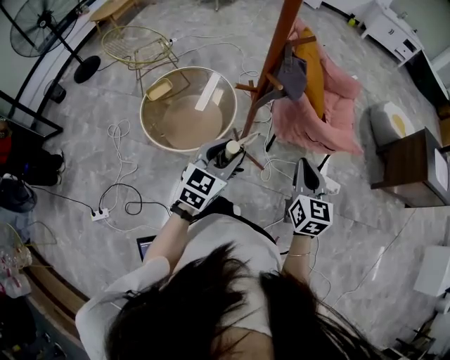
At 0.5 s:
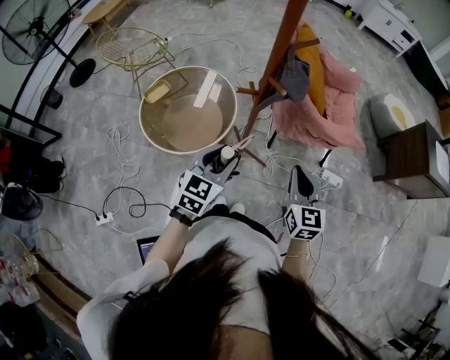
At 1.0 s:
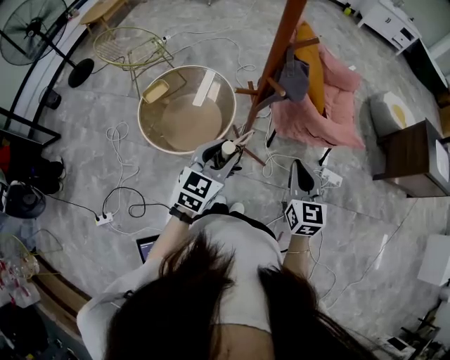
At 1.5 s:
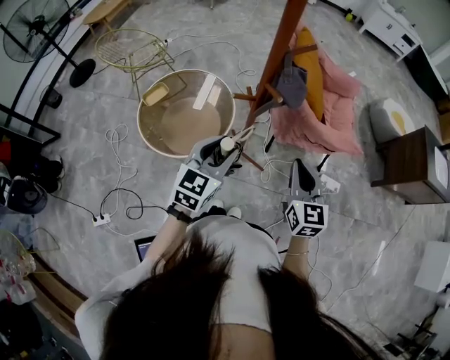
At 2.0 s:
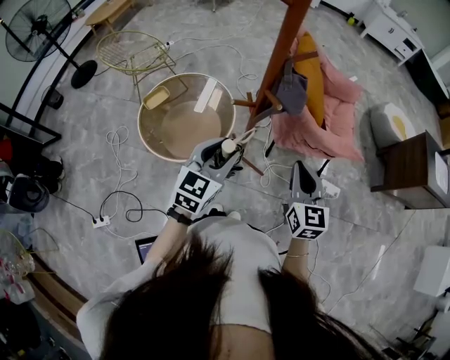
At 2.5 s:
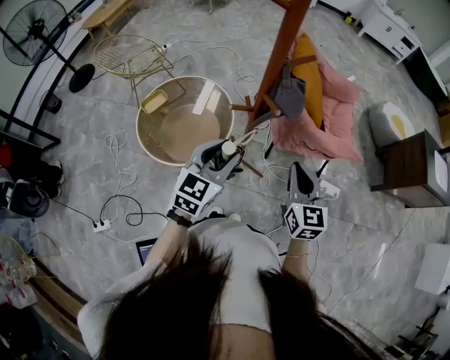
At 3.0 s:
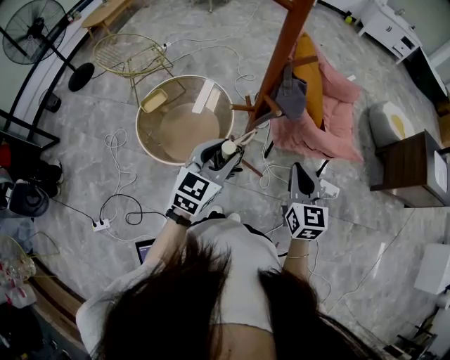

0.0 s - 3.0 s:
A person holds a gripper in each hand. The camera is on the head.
0.0 s - 1.5 s: The left gripper ends up approximately 5 cm from where it was.
1.5 s - 3.0 s: The grippers make only small movements.

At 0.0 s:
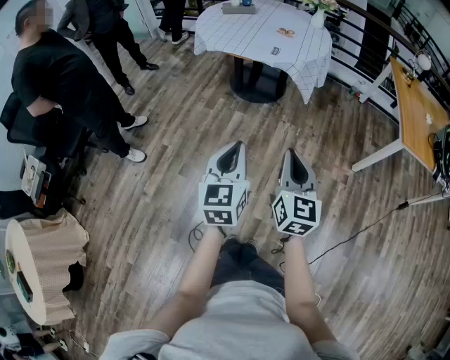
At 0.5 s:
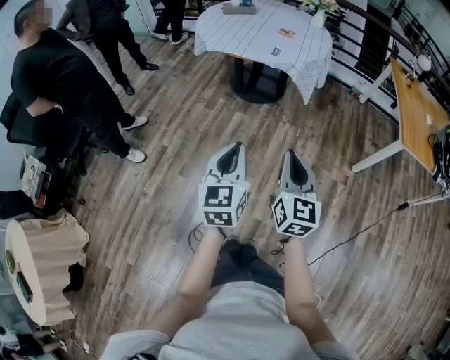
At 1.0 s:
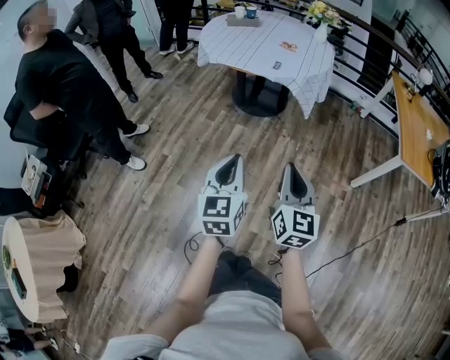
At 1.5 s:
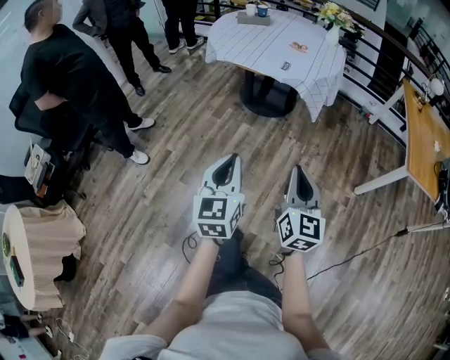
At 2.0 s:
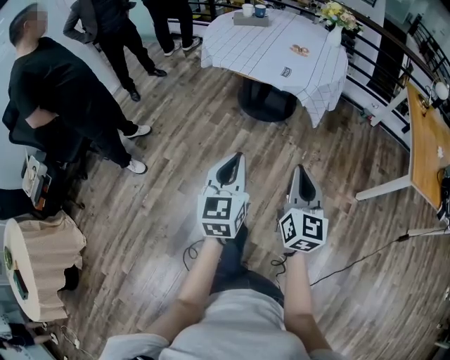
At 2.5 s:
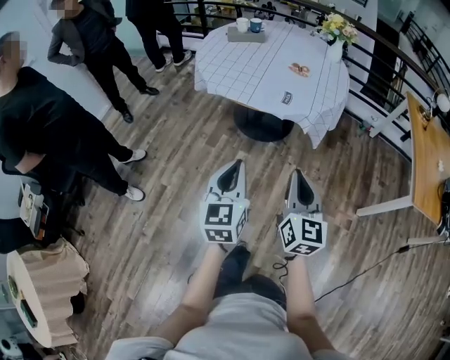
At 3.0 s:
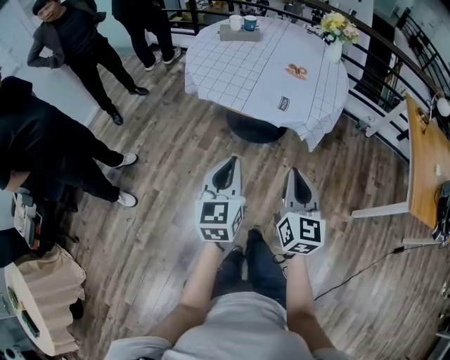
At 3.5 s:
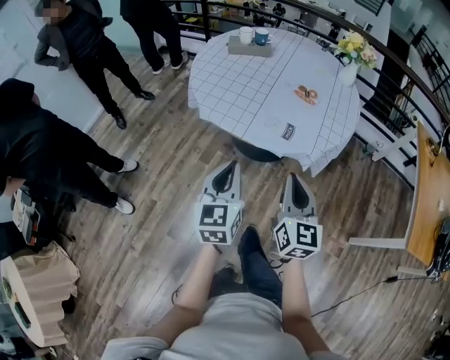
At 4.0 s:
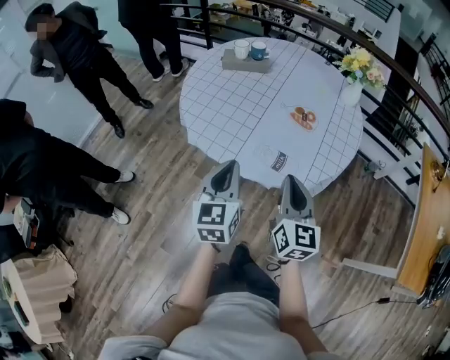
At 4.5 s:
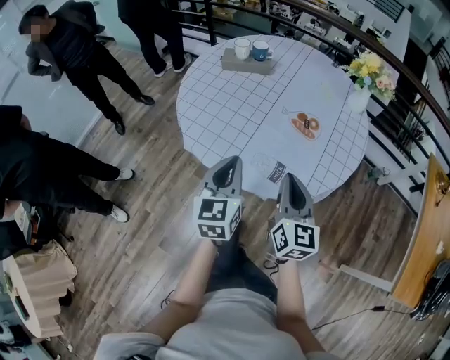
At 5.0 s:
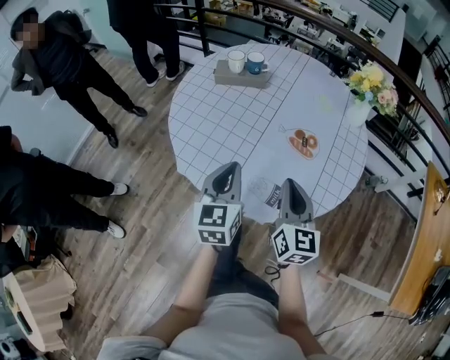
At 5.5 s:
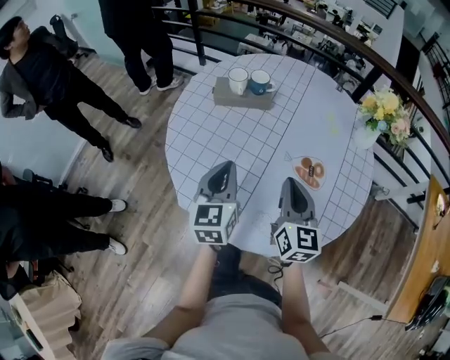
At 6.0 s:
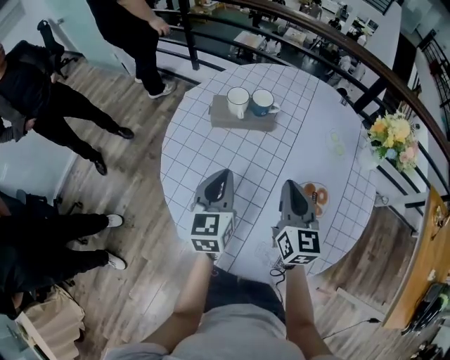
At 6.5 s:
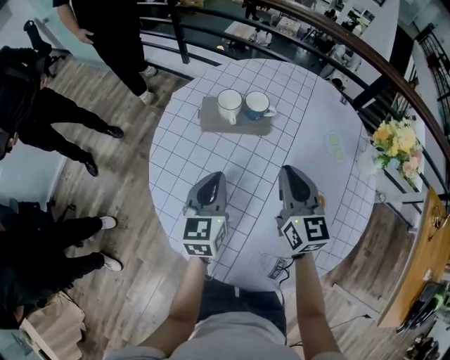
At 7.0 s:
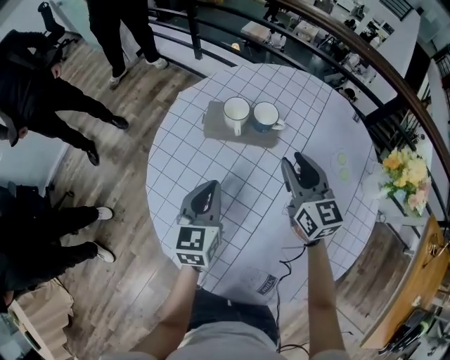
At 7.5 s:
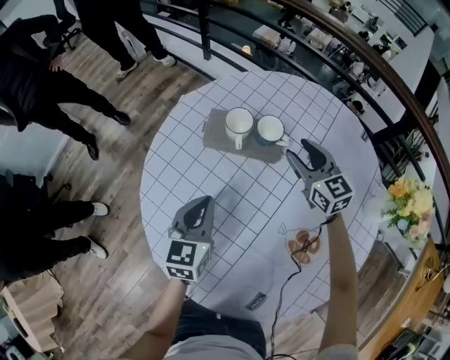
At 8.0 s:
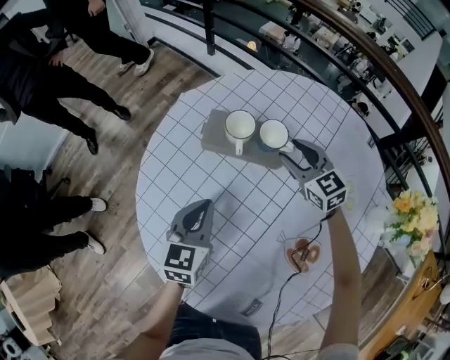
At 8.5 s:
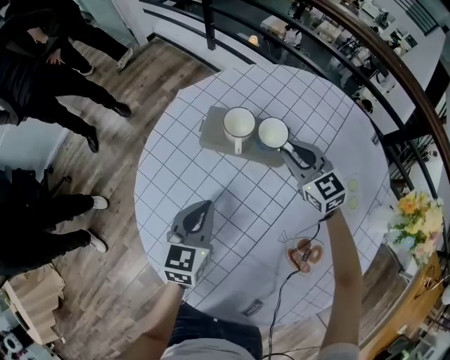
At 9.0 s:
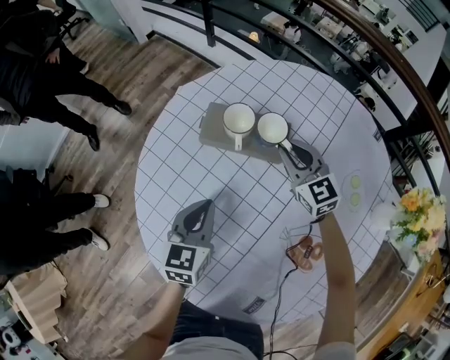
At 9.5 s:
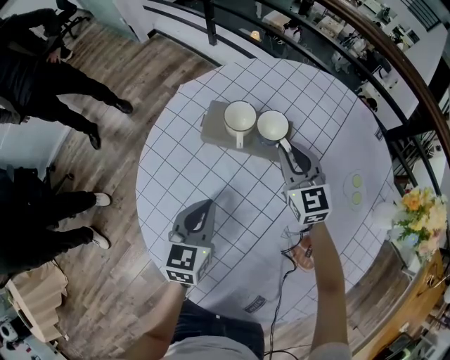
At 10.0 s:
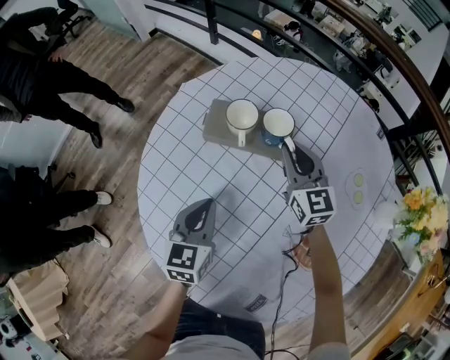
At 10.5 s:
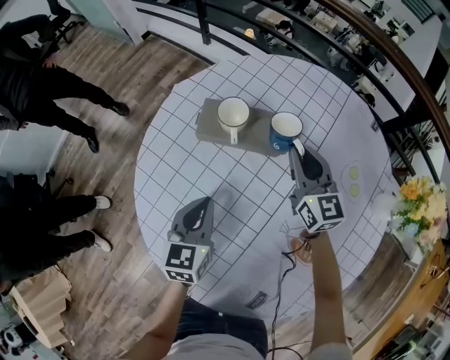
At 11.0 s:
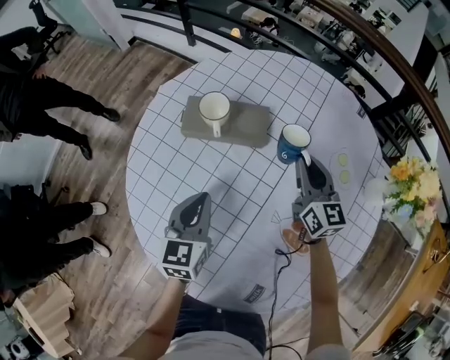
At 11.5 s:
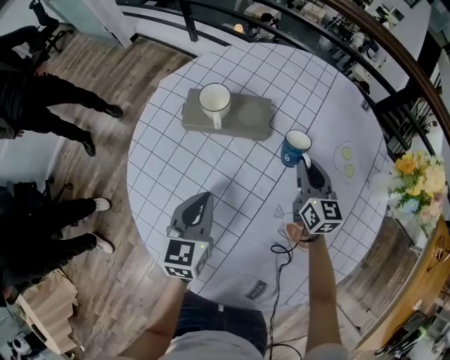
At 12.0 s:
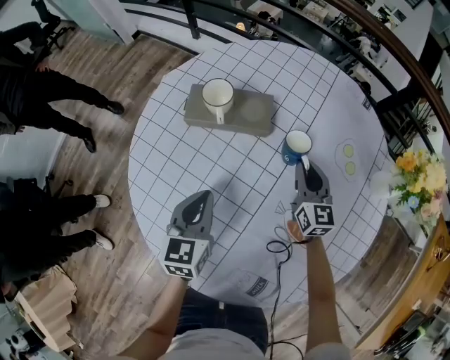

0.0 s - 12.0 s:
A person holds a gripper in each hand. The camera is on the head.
0.0 s - 2.0 s: The two grippers go approximately 15 cm forward.
2.0 s - 4.0 s: Both grippers are carried forward, about 50 cm.
4.0 s - 6.0 s: Both grippers are carried forward, some 40 cm.
6.0 s - 8.0 s: The right gripper heads forward and downward, covering about 30 cm, rotates approximately 50 degrees, and opens its fingers. Meanwhile the left gripper moves downward and forward, roughly 15 cm.
8.0 s - 10.0 s: The right gripper turns by approximately 20 degrees, and closes its fingers.
10.0 s - 12.0 s: The right gripper travels to the right, backward and downward by approximately 15 cm.

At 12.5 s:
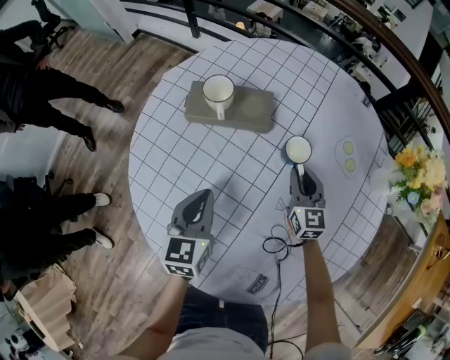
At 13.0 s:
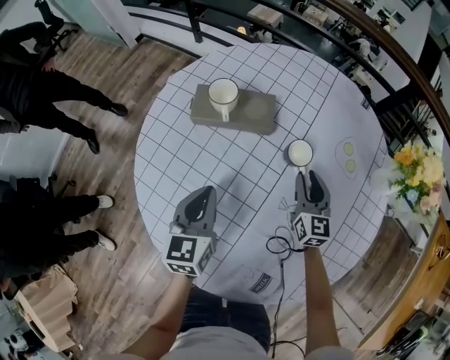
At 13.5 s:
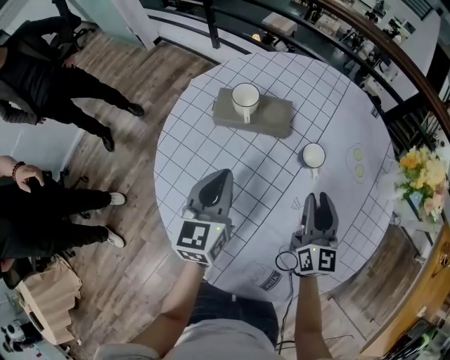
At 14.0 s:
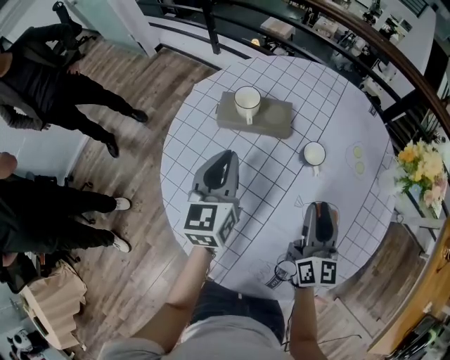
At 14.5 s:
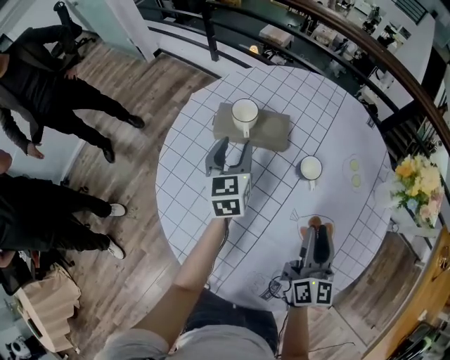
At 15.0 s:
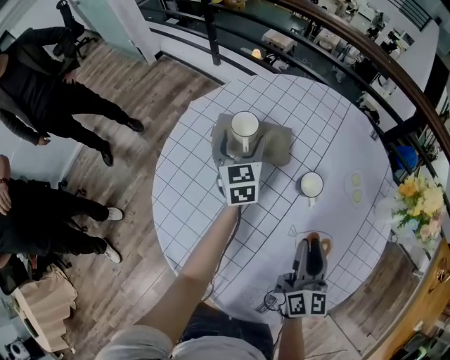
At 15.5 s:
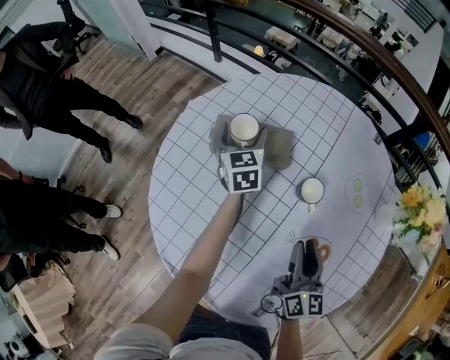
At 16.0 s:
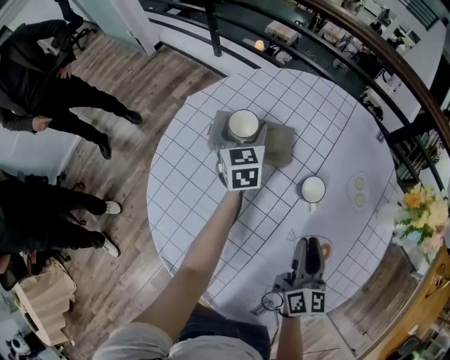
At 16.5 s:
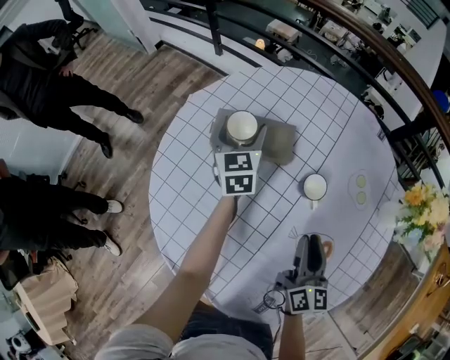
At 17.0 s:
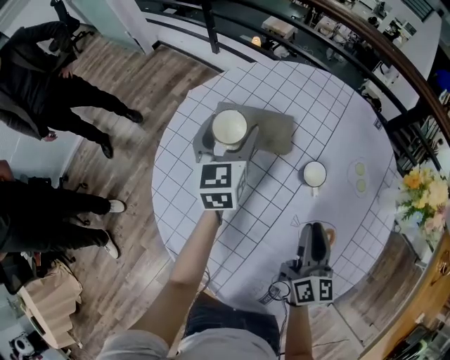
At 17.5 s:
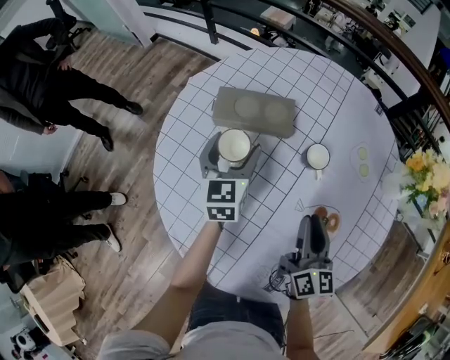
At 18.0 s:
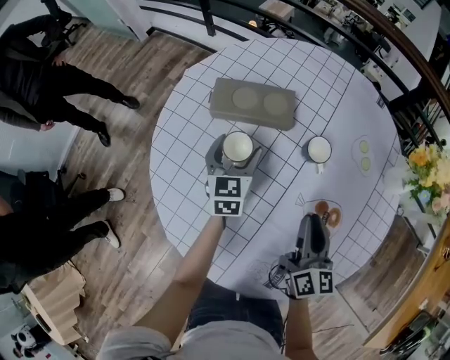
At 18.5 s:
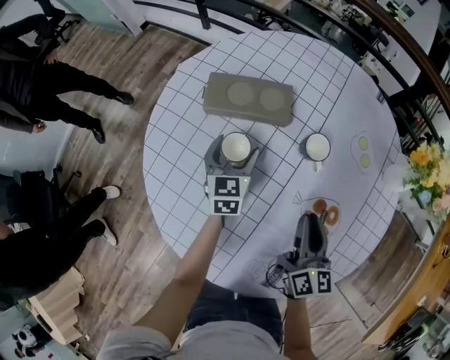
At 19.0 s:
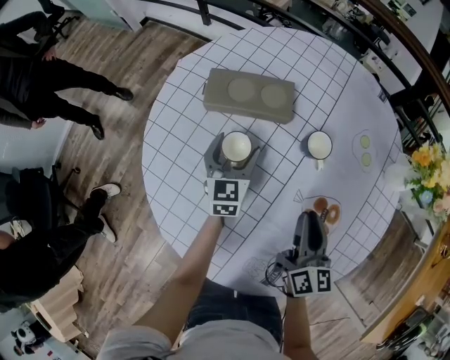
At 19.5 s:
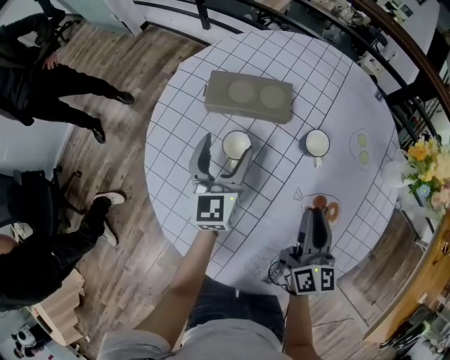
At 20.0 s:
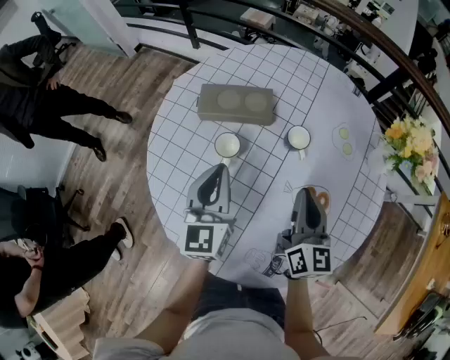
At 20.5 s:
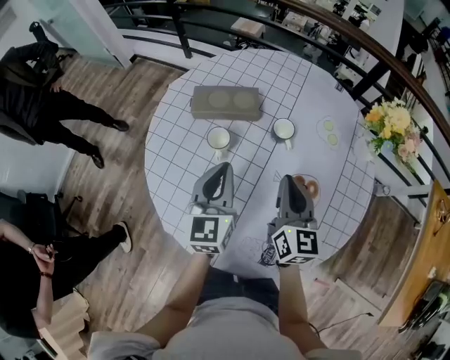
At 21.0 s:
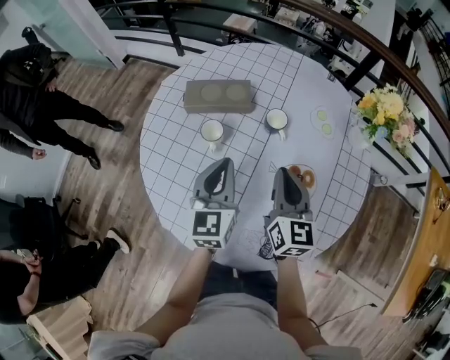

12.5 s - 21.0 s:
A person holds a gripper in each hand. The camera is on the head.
12.5 s - 14.5 s: The left gripper shifts about 15 cm forward, and opens, while the right gripper shifts roughly 20 cm upward and backward, and turns by some 30 degrees.
14.5 s - 16.5 s: The left gripper heads forward, covering roughly 10 cm, and opens up, while the right gripper moves roughly 5 cm.
16.5 s - 19.0 s: The left gripper goes roughly 15 cm backward and downward.
19.0 s - 21.0 s: The left gripper goes about 25 cm upward and backward, and closes. The right gripper goes approximately 10 cm upward.

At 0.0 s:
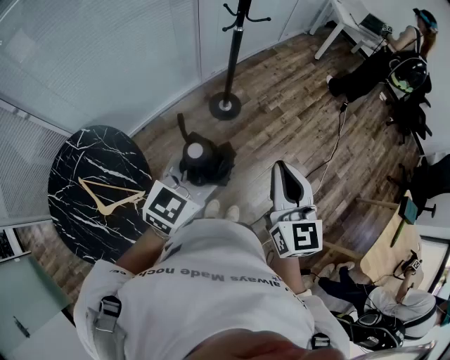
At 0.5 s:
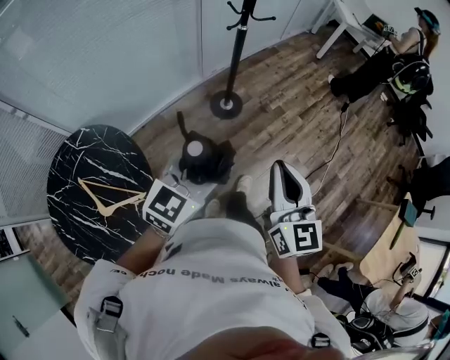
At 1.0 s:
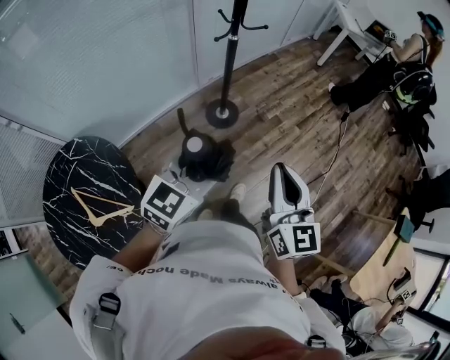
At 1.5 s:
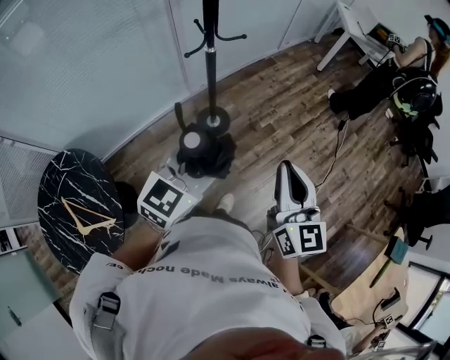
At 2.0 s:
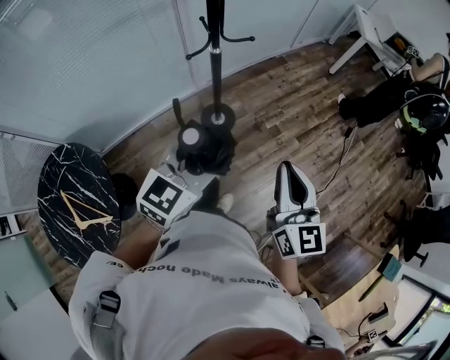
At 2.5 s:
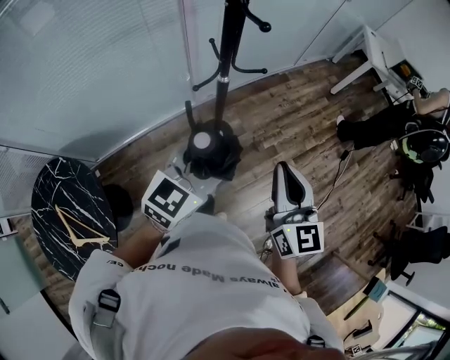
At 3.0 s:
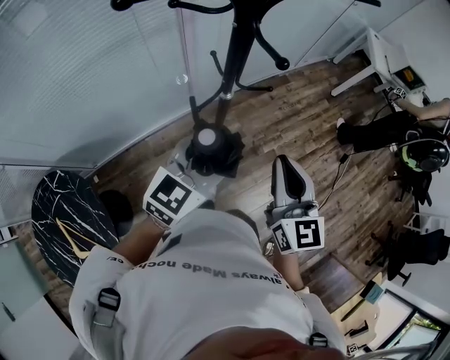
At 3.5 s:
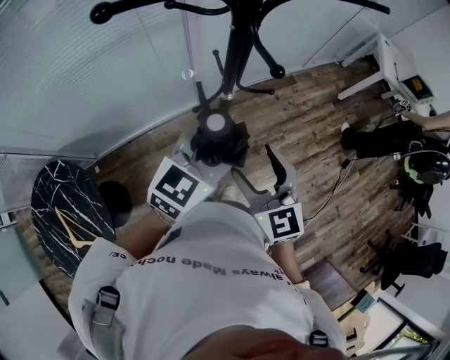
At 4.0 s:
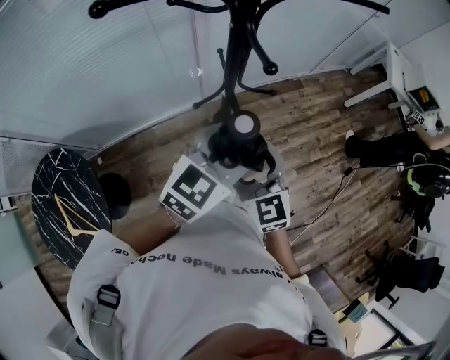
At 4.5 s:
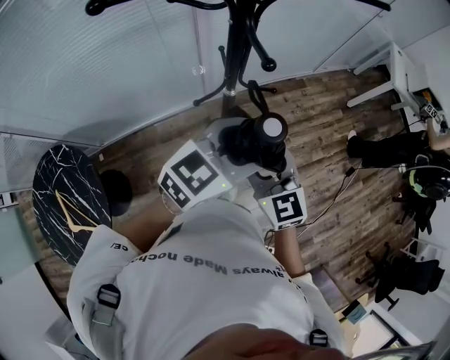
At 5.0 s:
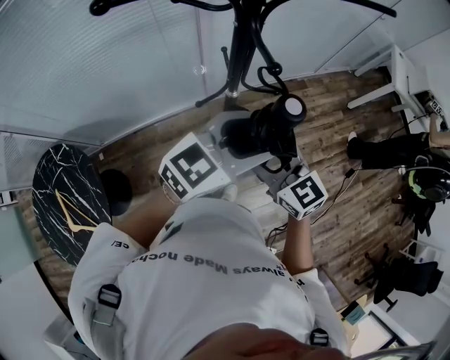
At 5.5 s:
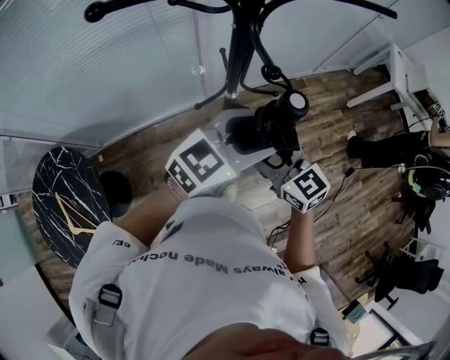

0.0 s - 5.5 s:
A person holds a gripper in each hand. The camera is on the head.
0.0 s - 2.0 s: The left gripper moves forward, some 35 cm. Meanwhile the right gripper goes about 40 cm forward and to the right.
2.0 s - 3.5 s: The left gripper heads forward, covering some 30 cm, while the right gripper travels forward and to the left by roughly 30 cm, rotates approximately 30 degrees, and opens its fingers.
3.5 s - 5.5 s: The left gripper is displaced to the right by approximately 5 cm, while the right gripper moves some 5 cm, and swivels roughly 20 degrees.
